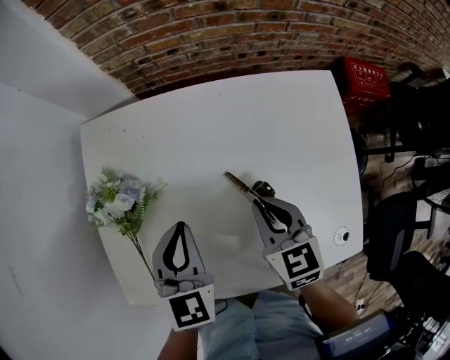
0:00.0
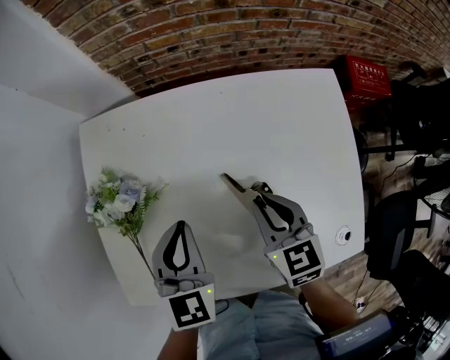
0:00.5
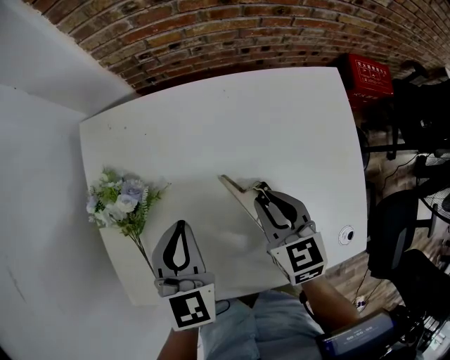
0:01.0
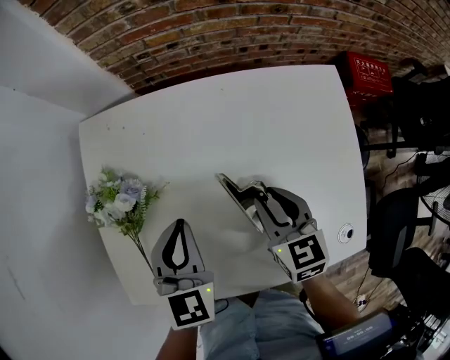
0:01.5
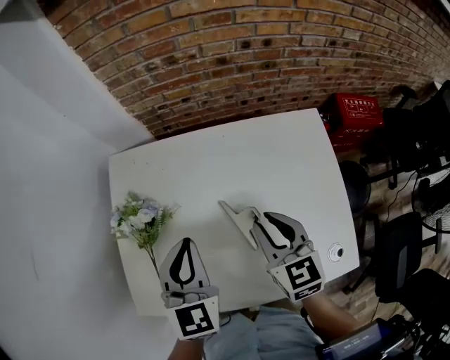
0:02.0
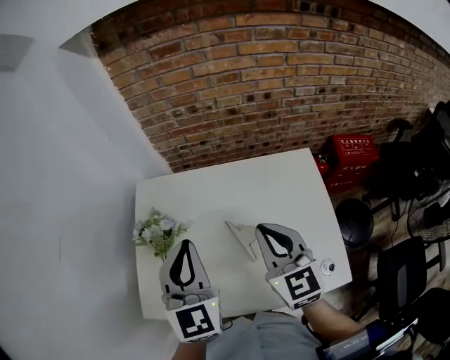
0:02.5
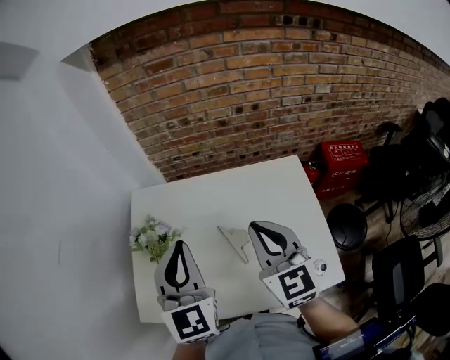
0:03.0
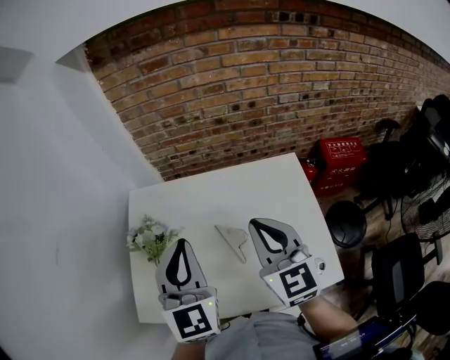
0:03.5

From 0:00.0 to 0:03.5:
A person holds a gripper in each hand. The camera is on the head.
From 0:00.0 to 0:02.0: The grippers both shift upward by approximately 5 cm.
From 0:02.0 to 0:03.5: The two grippers go about 15 cm upward. The right gripper closes up.

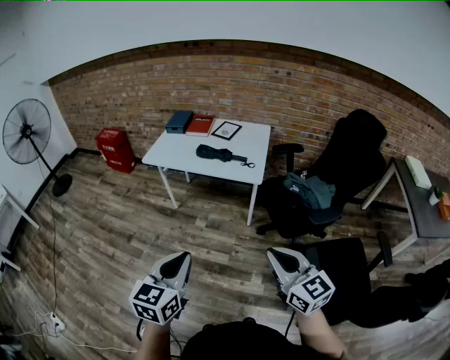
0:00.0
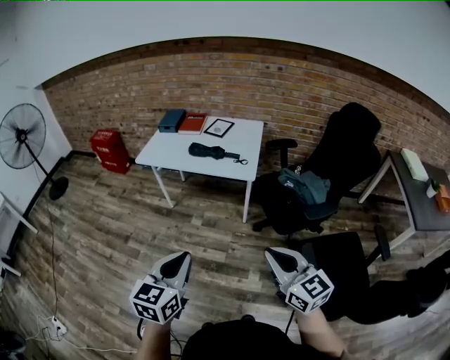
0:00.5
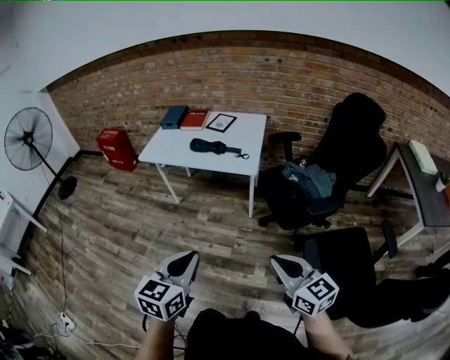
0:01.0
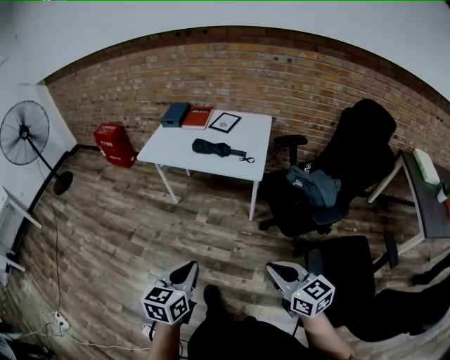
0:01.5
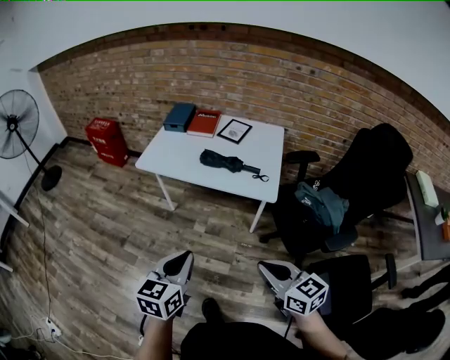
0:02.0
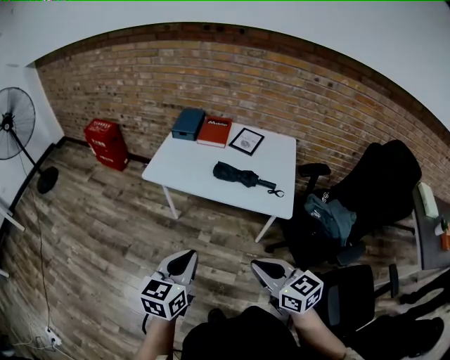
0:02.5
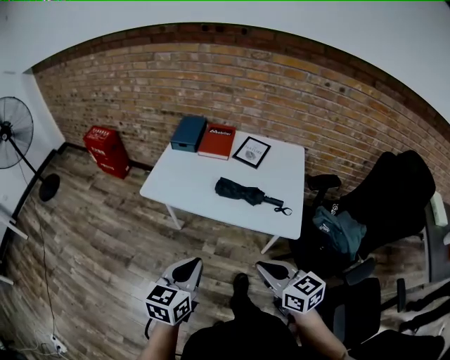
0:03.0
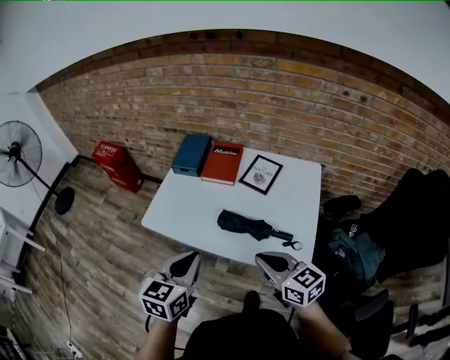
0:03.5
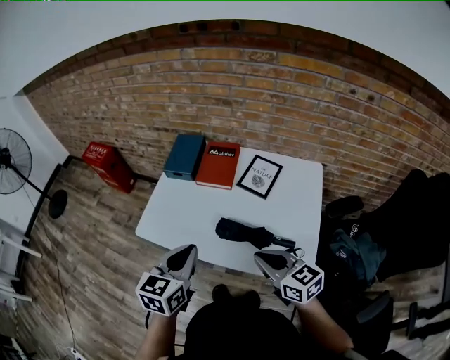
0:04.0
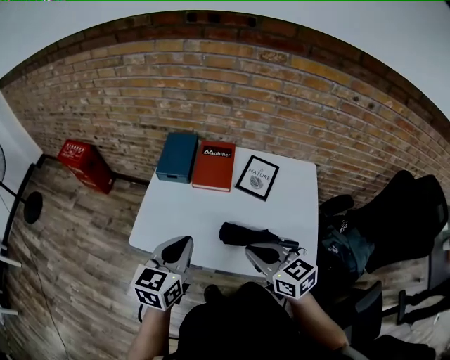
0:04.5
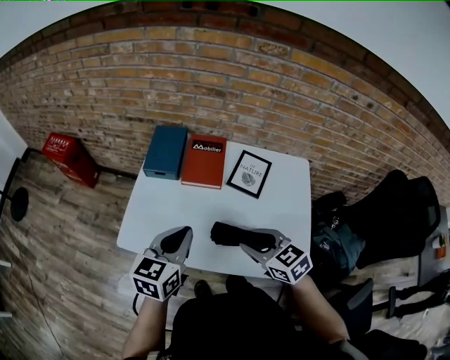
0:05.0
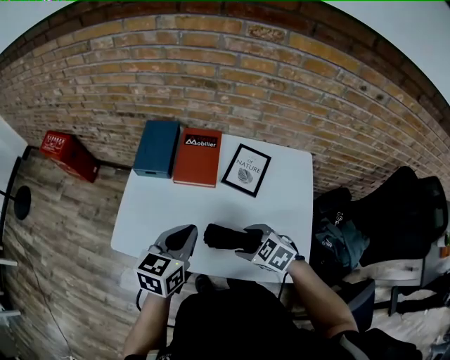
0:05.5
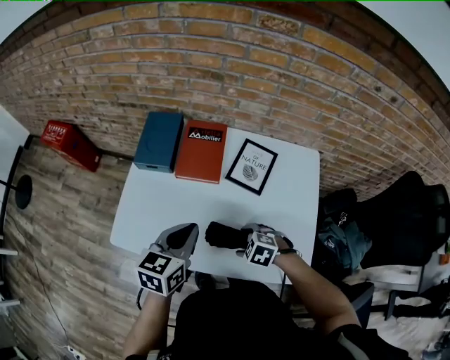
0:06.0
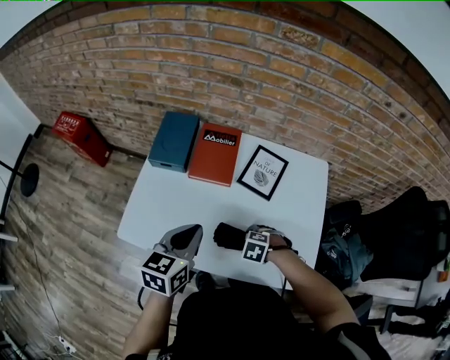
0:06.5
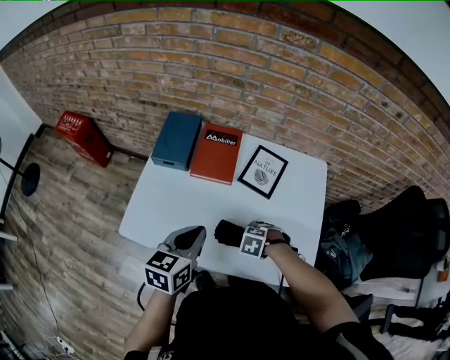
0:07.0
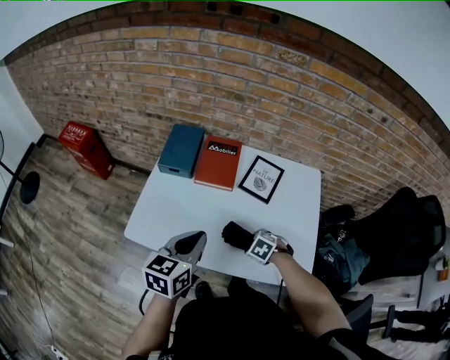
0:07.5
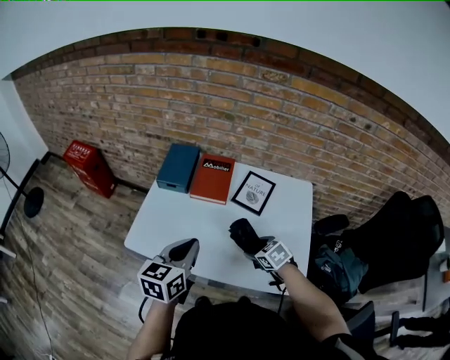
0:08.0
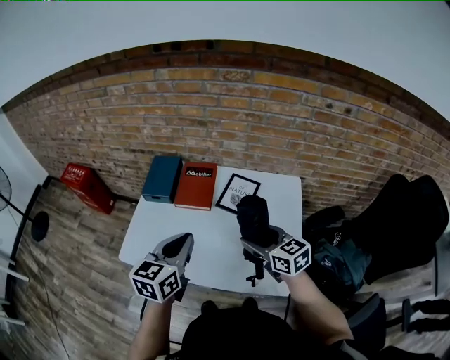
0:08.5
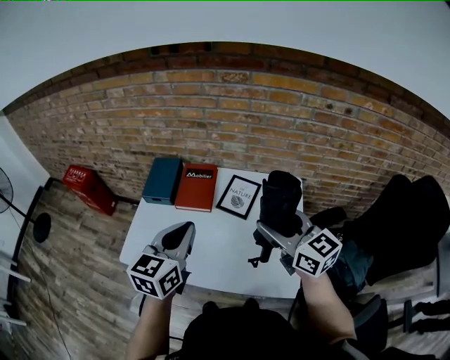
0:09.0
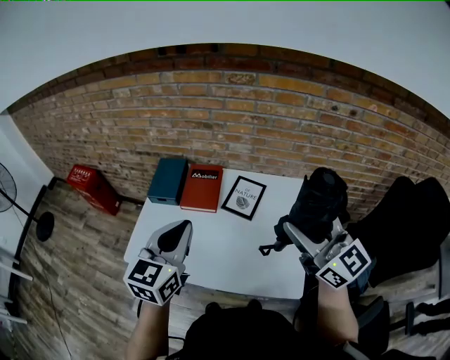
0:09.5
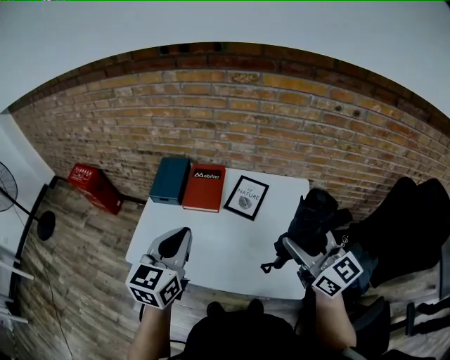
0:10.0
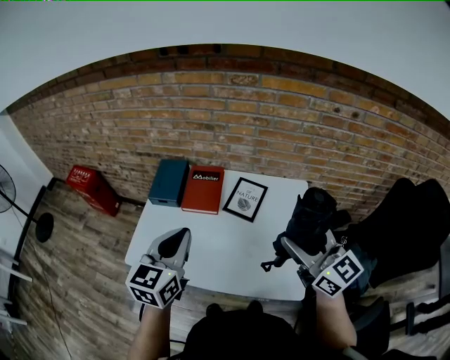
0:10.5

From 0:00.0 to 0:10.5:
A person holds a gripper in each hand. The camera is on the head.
From 0:00.0 to 0:02.0: The right gripper is displaced forward and downward by about 20 cm, while the left gripper moves forward, some 20 cm.
From 0:02.0 to 0:04.0: The pair of grippers is taken forward, some 50 cm.
From 0:04.0 to 0:06.5: The left gripper ends up roughly 15 cm from where it was. Meanwhile the right gripper shifts roughly 25 cm downward, tilts its fingers about 60 degrees downward, and opens.
From 0:06.5 to 0:08.5: The right gripper heads upward, covering approximately 25 cm, and tilts its fingers about 60 degrees upward; the left gripper shifts roughly 10 cm upward.
From 0:08.5 to 0:10.5: The right gripper travels upward by some 15 cm, and swivels roughly 30 degrees, while the left gripper is displaced upward by approximately 5 cm.

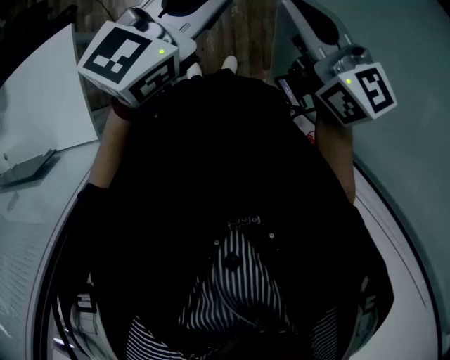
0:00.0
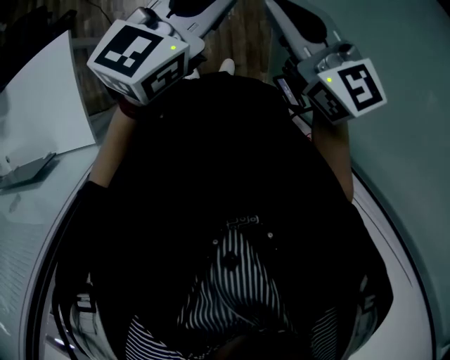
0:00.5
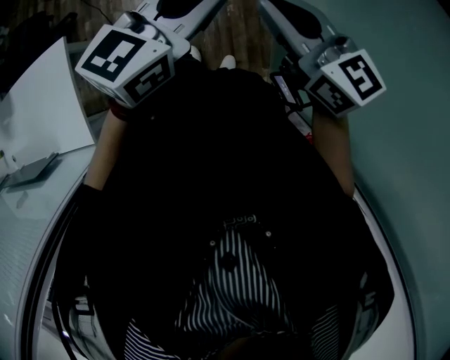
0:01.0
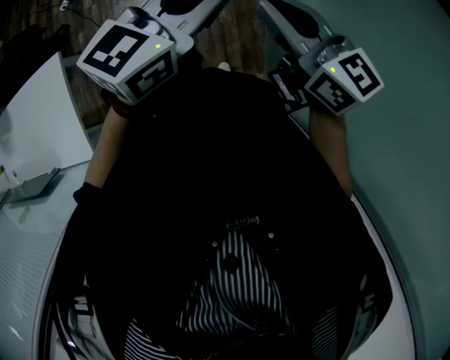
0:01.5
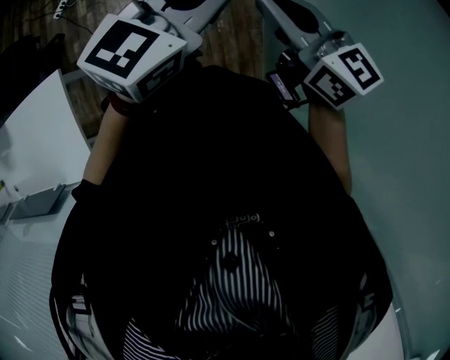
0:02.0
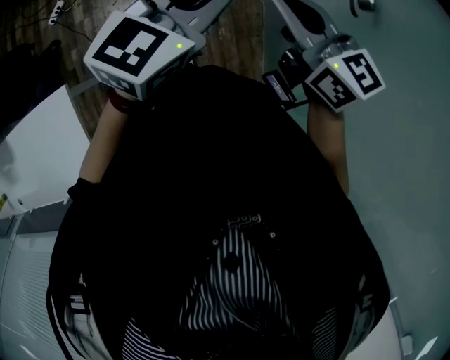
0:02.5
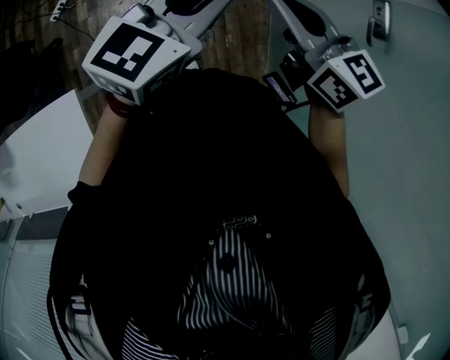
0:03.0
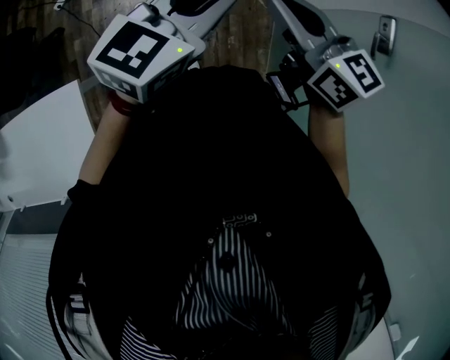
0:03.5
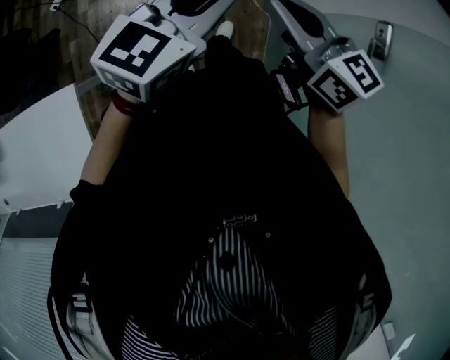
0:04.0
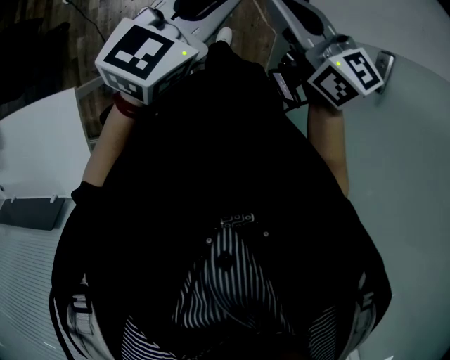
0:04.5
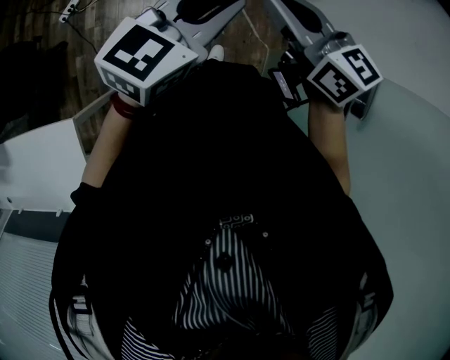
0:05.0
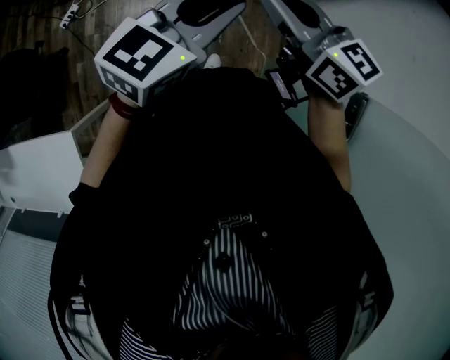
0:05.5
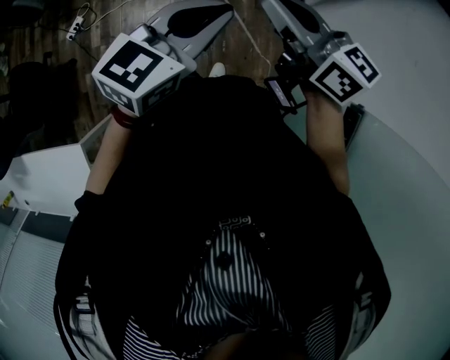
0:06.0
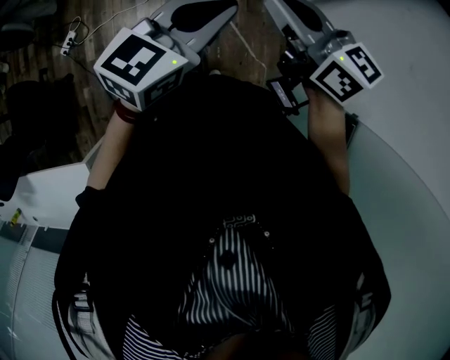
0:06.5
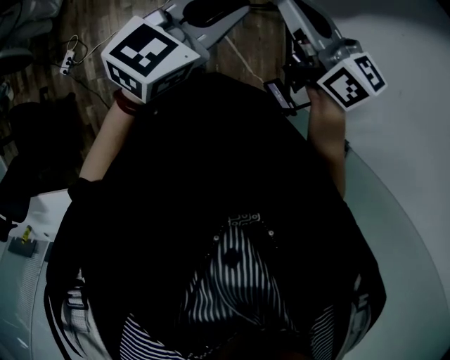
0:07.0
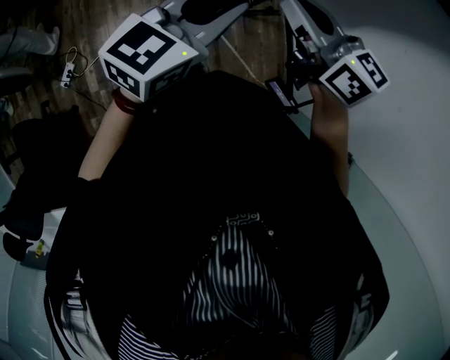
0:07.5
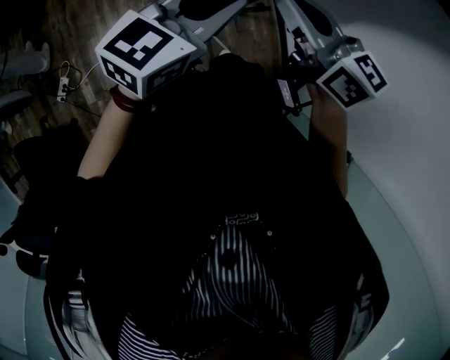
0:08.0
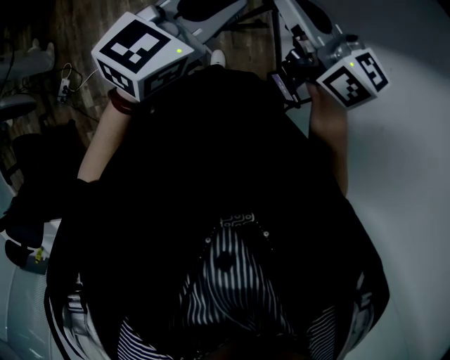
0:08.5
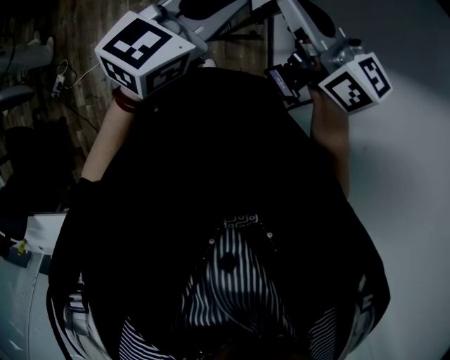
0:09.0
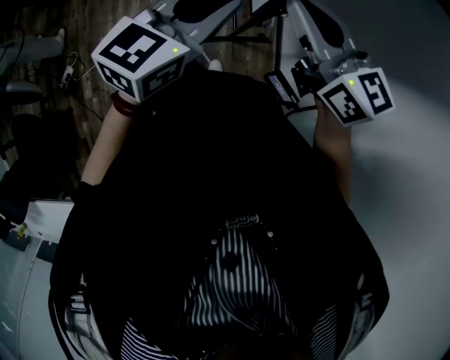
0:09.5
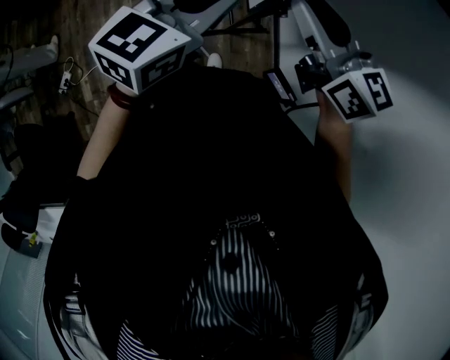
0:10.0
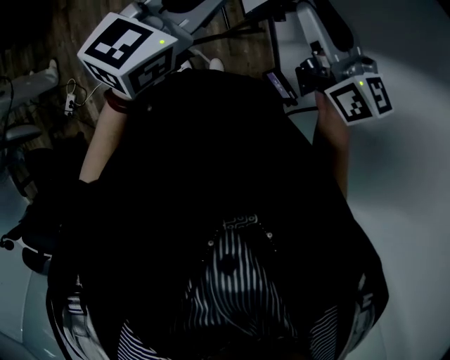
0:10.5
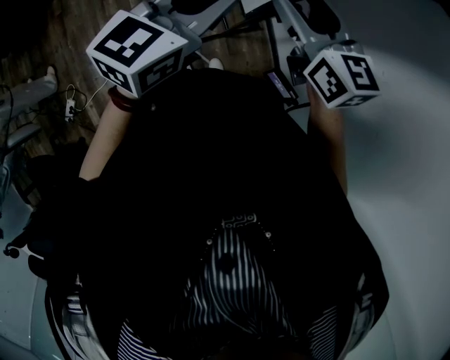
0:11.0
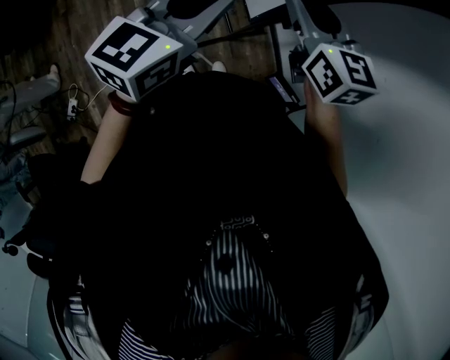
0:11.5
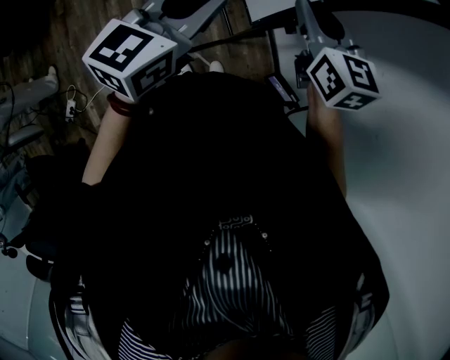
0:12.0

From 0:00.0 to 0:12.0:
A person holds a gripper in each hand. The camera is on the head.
From 0:00.0 to 0:06.0: There are only small adjustments of the grippers.
From 0:06.0 to 0:08.0: Both grippers travel together forward, roughly 15 cm. The right gripper rotates roughly 20 degrees; the left gripper turns by approximately 20 degrees.
From 0:08.0 to 0:10.0: The grippers both shift forward and to the right by approximately 20 cm. The right gripper opens.
From 0:10.0 to 0:12.0: The right gripper ends up approximately 5 cm from where it was, swivels roughly 30 degrees, and opens and closes again.

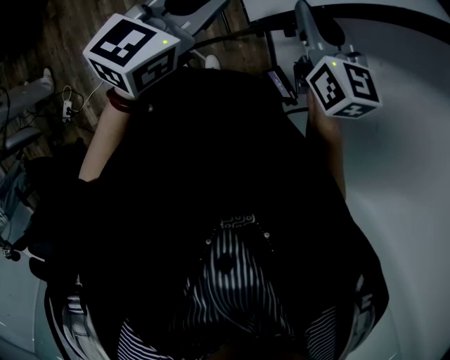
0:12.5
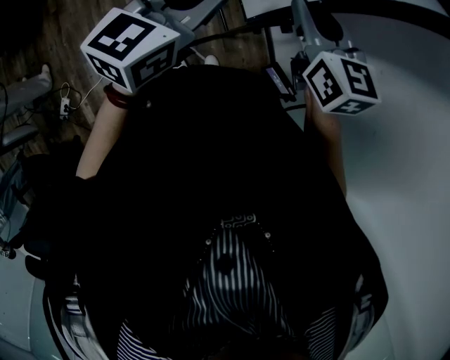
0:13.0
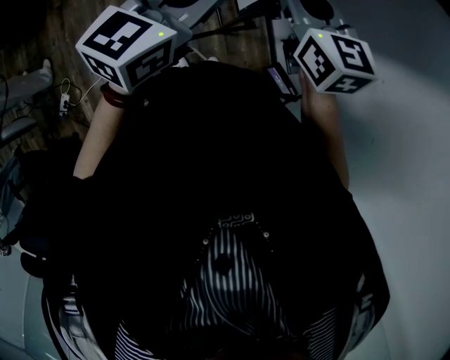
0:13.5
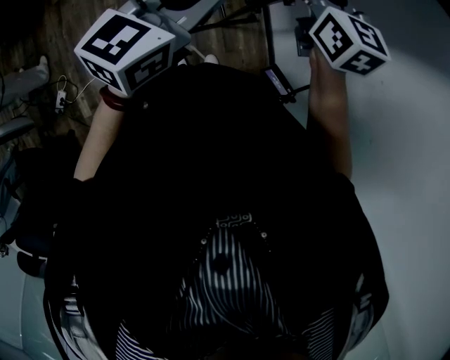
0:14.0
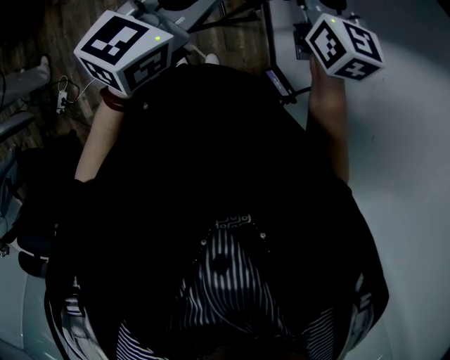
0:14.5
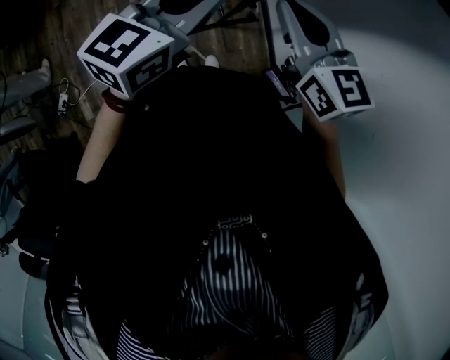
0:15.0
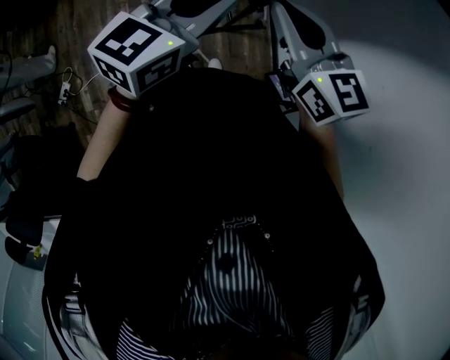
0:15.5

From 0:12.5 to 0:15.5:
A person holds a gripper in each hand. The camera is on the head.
From 0:12.5 to 0:14.0: The right gripper moves forward and to the left, some 10 cm.
From 0:14.0 to 0:15.5: The right gripper shifts approximately 10 cm backward and to the left.
